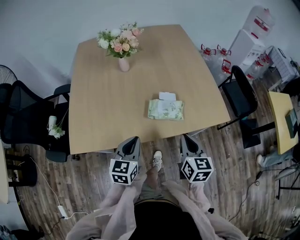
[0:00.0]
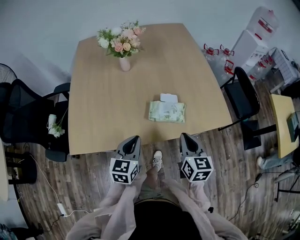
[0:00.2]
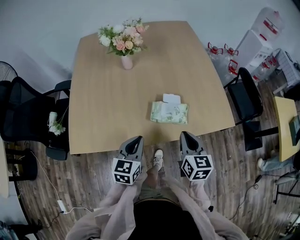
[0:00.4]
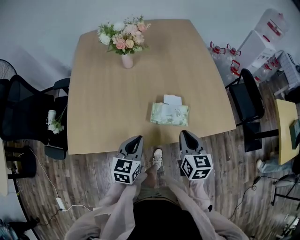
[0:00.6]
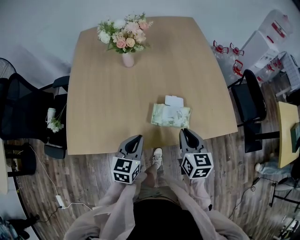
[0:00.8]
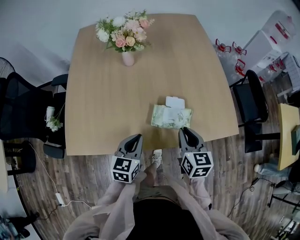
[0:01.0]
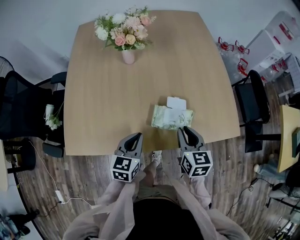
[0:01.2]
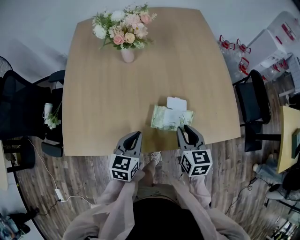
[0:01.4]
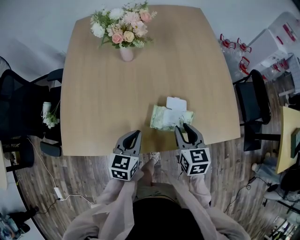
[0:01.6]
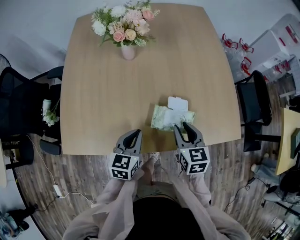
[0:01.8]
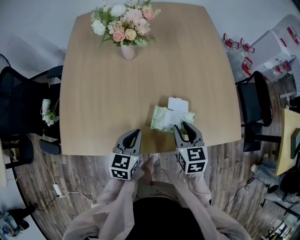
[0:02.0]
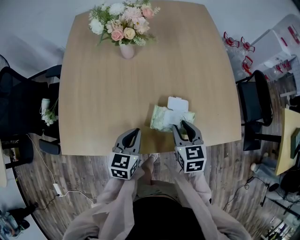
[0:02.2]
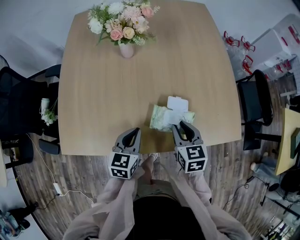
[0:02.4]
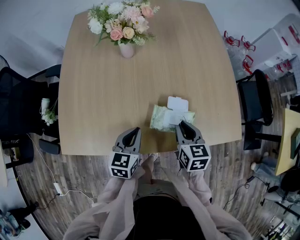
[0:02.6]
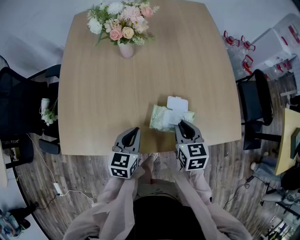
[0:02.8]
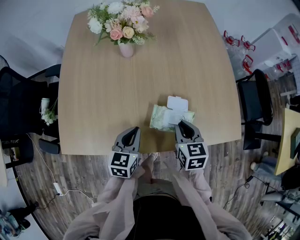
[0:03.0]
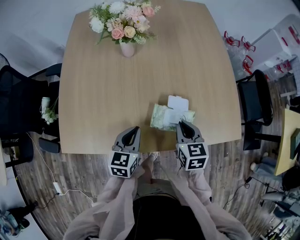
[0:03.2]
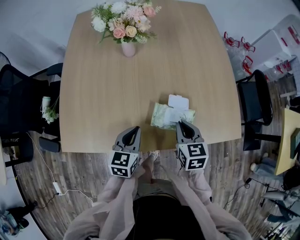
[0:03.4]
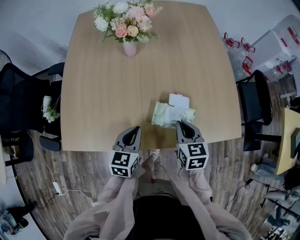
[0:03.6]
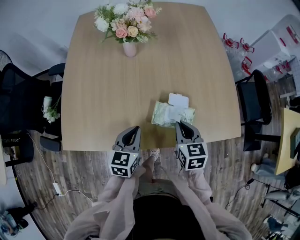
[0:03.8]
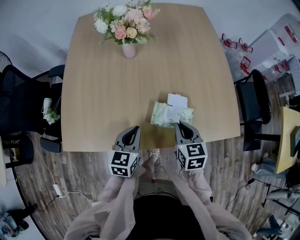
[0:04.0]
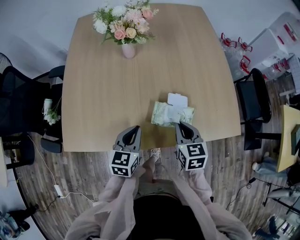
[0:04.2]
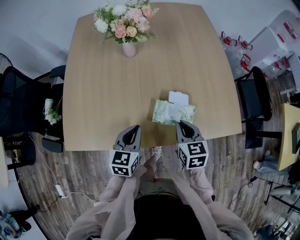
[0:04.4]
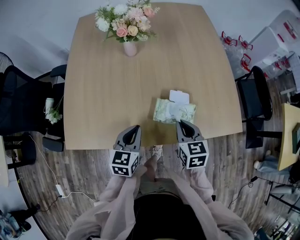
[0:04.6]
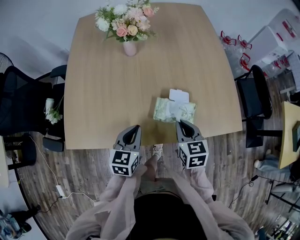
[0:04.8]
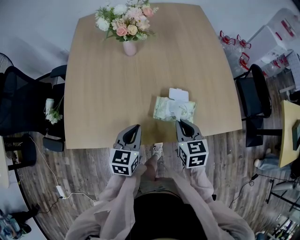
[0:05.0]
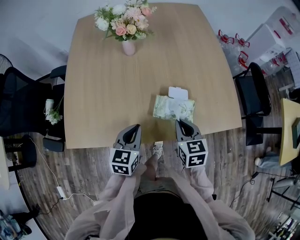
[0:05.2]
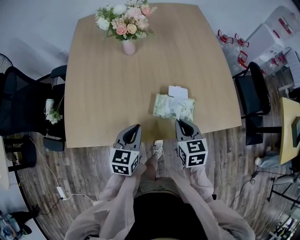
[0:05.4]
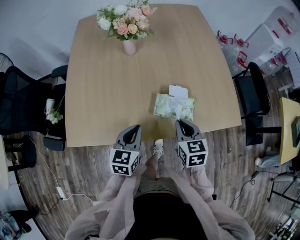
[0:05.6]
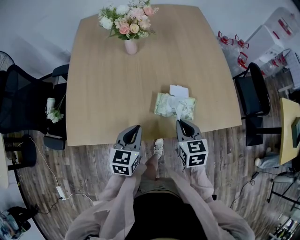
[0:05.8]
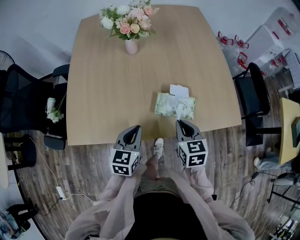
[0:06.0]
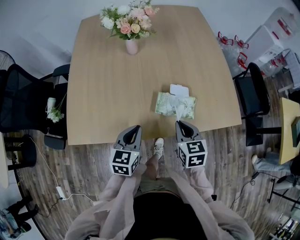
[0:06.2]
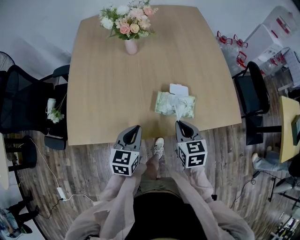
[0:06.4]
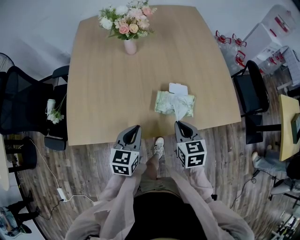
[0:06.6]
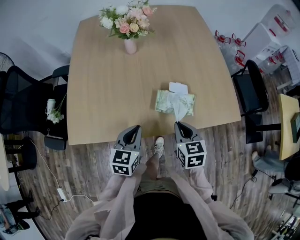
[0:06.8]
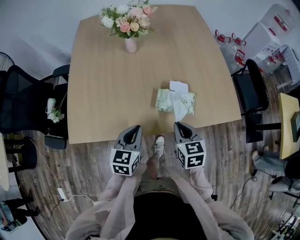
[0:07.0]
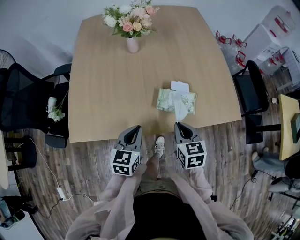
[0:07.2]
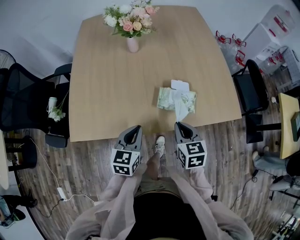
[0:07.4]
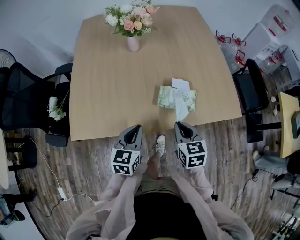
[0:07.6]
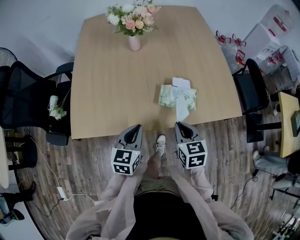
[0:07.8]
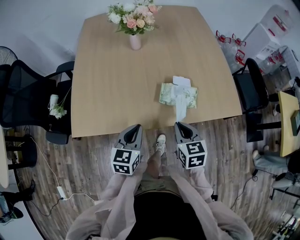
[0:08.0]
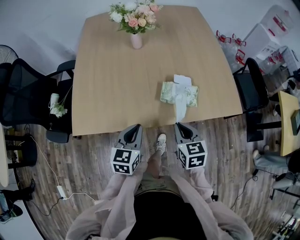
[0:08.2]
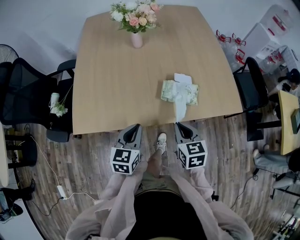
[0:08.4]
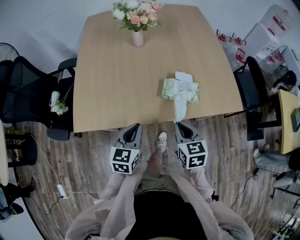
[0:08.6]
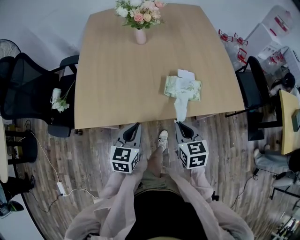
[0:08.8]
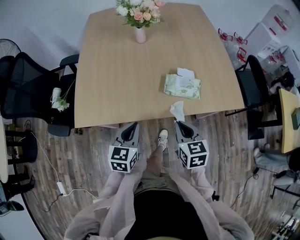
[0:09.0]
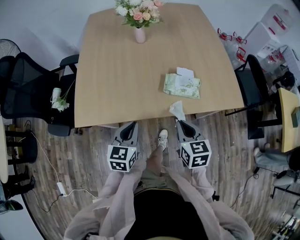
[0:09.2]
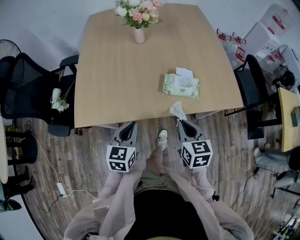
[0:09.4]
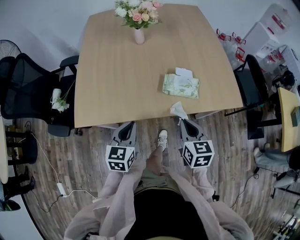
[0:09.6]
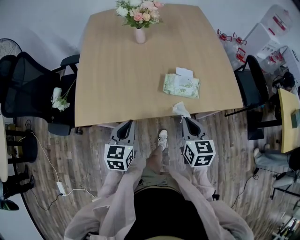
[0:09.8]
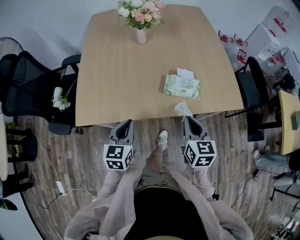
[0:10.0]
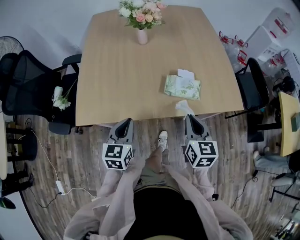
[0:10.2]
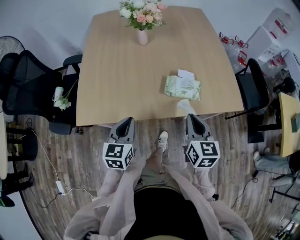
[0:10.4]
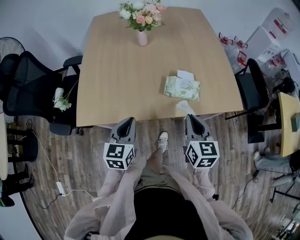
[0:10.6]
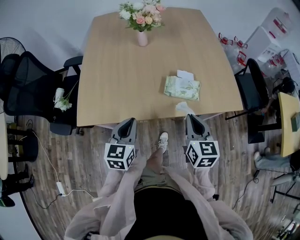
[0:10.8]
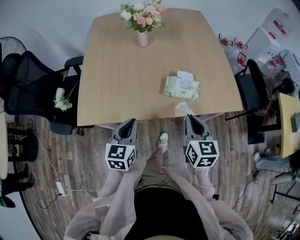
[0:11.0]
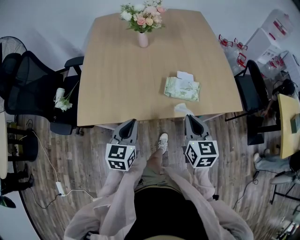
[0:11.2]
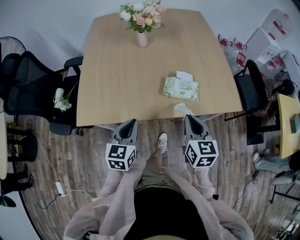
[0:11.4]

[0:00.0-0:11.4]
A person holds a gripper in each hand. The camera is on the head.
0.0 to 1.4 s: The grippers both shift forward and downward by some 15 cm. The right gripper opens.
1.4 to 5.6 s: The grippers stay close to where they were, moving slightly.
5.6 to 7.2 s: The grippers make only small movements.
7.2 to 8.6 s: The grippers both shift backward by roughly 5 cm.
8.6 to 10.0 s: The grippers stay close to where they were, moving slightly.
10.0 to 11.4 s: The grippers move only a little.

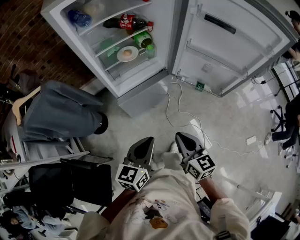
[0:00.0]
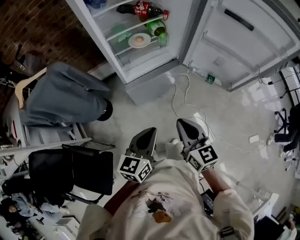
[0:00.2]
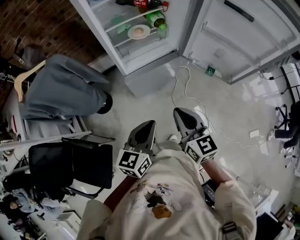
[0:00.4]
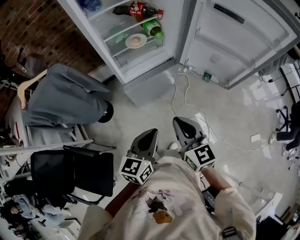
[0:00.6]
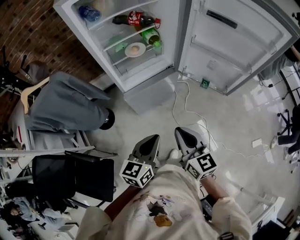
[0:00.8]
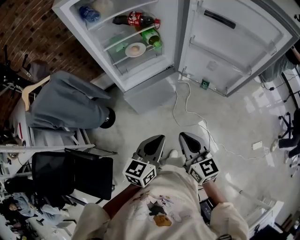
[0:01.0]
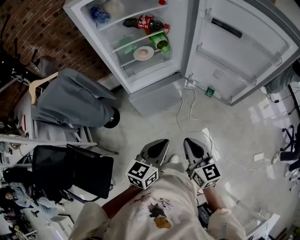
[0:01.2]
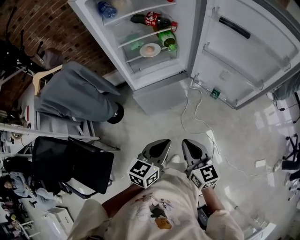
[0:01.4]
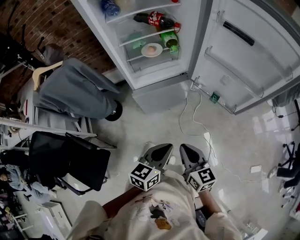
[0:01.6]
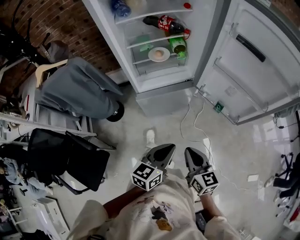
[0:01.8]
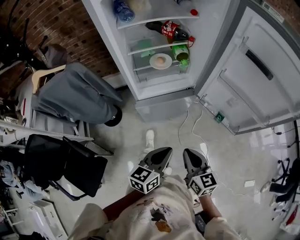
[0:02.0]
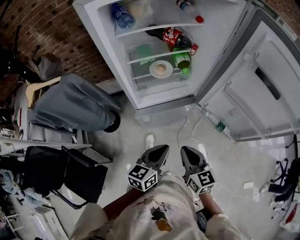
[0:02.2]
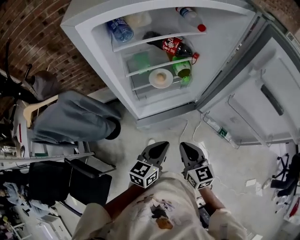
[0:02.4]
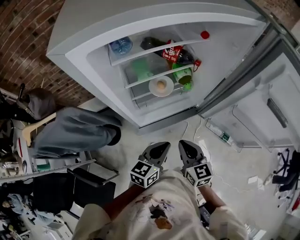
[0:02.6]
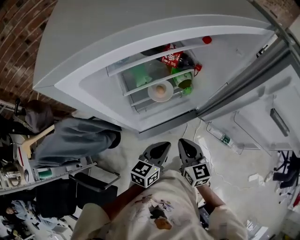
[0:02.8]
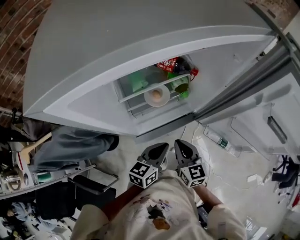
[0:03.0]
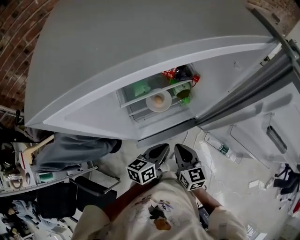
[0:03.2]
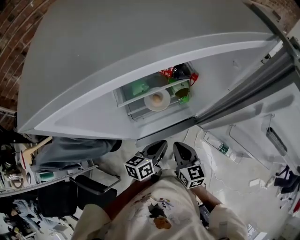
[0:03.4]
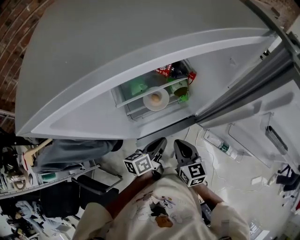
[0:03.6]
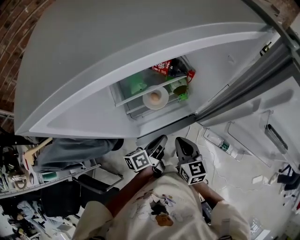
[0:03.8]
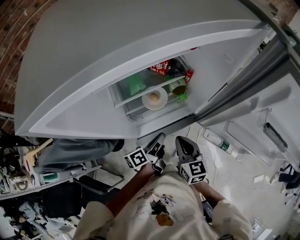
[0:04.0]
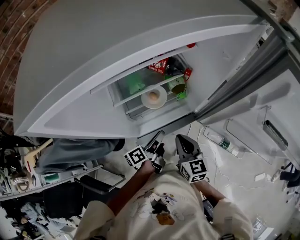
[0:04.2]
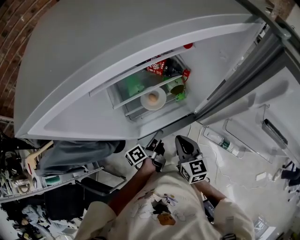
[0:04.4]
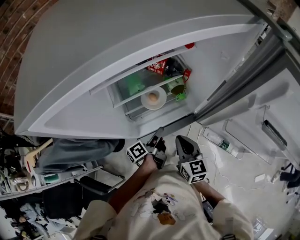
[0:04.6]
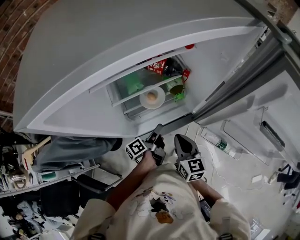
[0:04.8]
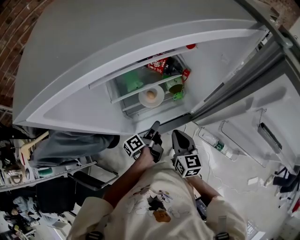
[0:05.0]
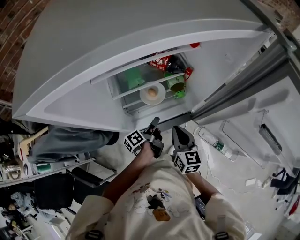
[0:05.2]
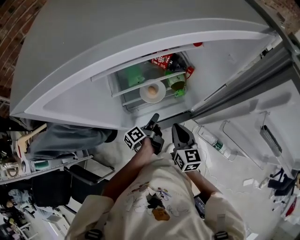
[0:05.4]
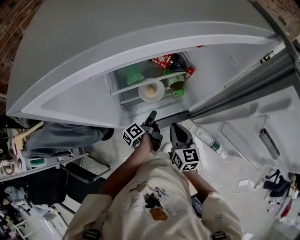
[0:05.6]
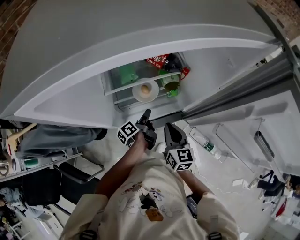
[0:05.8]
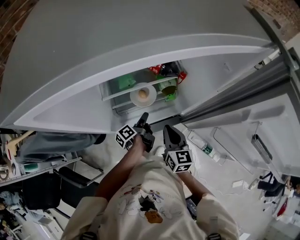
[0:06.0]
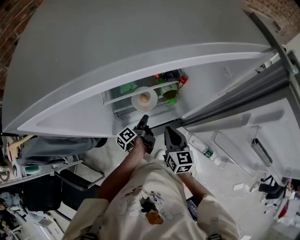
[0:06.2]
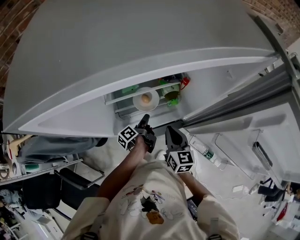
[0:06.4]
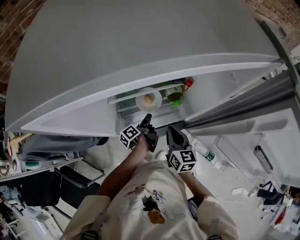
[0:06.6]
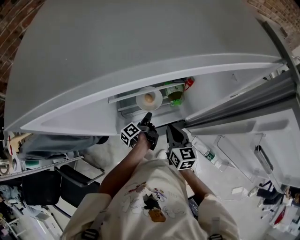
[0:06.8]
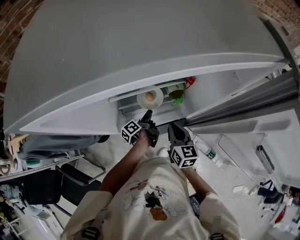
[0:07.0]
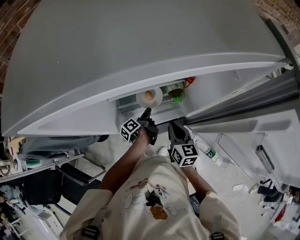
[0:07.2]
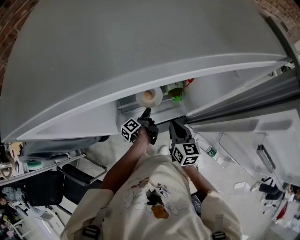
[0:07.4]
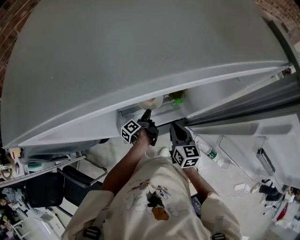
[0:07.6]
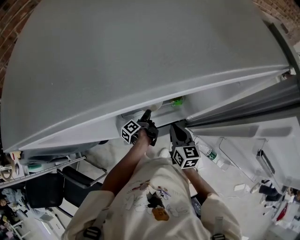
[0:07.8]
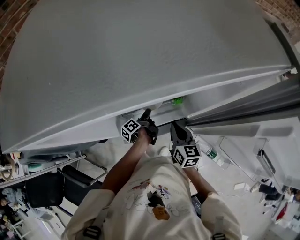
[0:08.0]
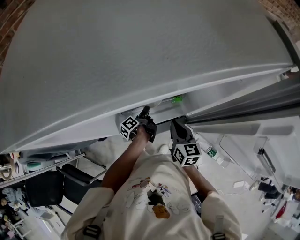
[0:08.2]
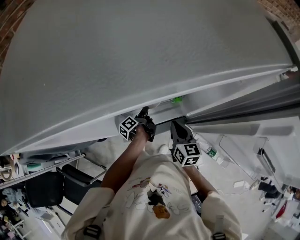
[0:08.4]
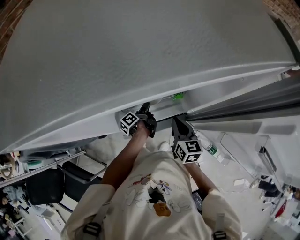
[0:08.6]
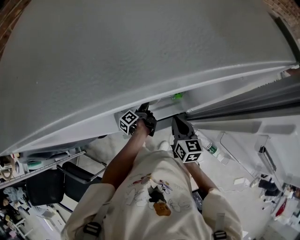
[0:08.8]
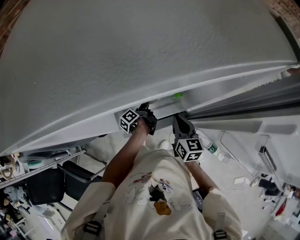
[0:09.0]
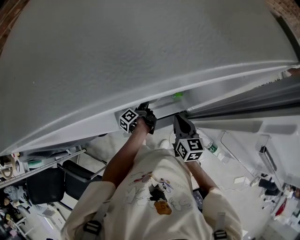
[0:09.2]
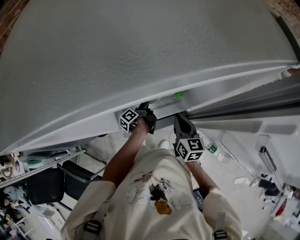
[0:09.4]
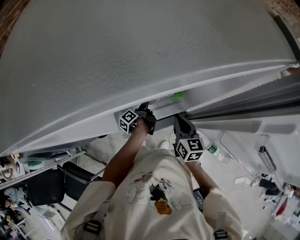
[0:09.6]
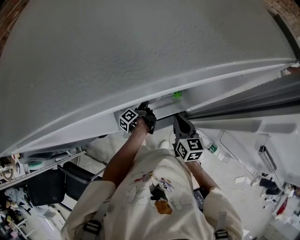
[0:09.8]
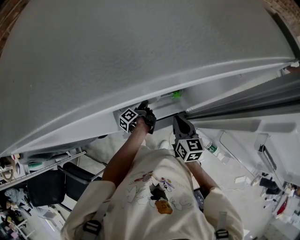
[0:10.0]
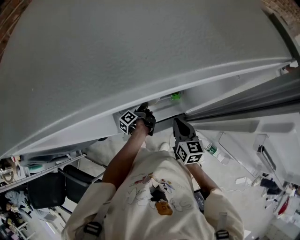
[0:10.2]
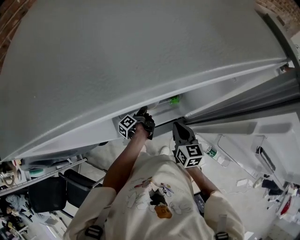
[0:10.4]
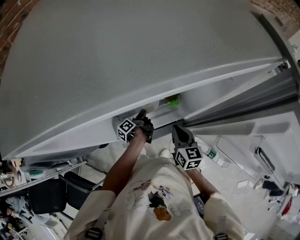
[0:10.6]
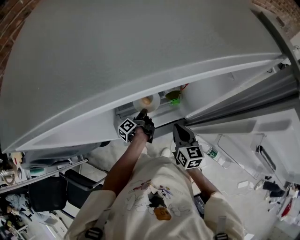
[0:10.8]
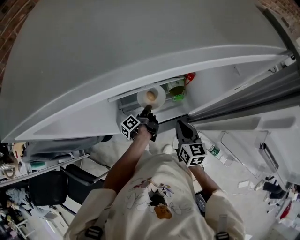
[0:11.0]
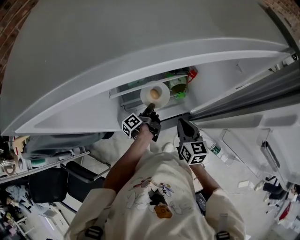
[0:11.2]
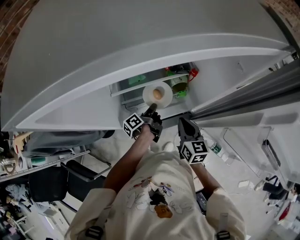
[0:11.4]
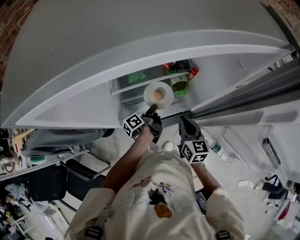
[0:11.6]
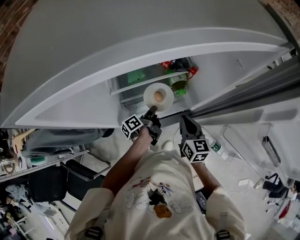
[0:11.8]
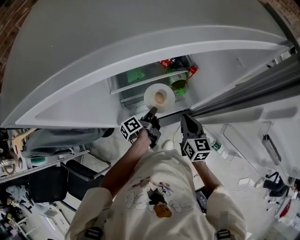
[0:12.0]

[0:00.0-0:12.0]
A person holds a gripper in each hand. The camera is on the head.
0.0 to 1.6 s: The right gripper shifts by some 5 cm.
1.6 to 3.0 s: The right gripper shifts by approximately 35 cm.
4.4 to 6.0 s: The right gripper shifts by roughly 5 cm.

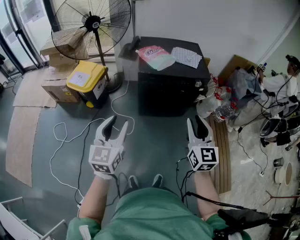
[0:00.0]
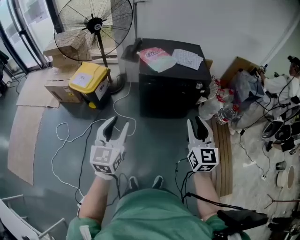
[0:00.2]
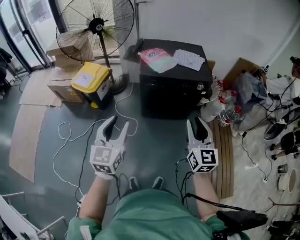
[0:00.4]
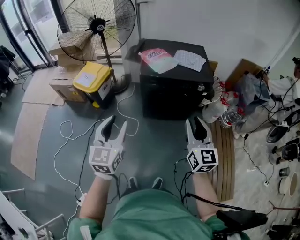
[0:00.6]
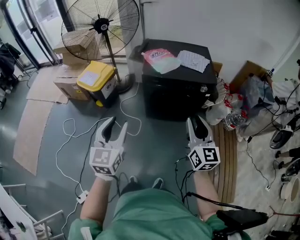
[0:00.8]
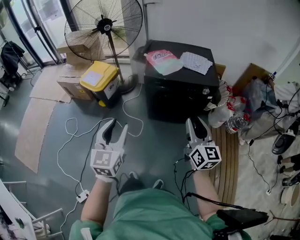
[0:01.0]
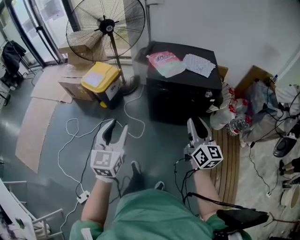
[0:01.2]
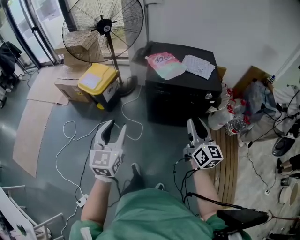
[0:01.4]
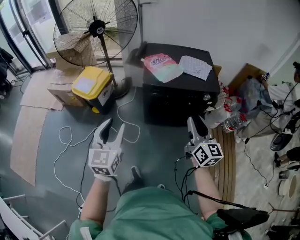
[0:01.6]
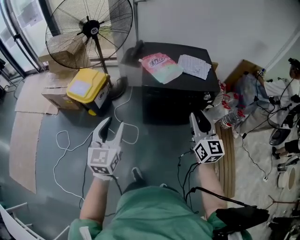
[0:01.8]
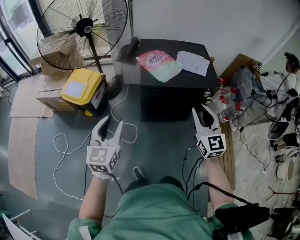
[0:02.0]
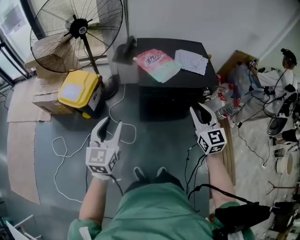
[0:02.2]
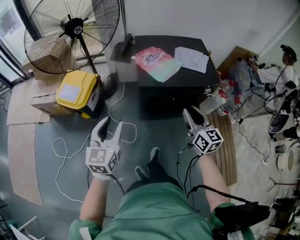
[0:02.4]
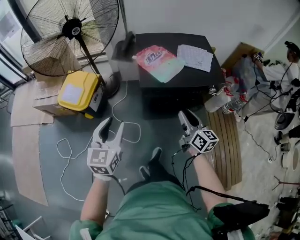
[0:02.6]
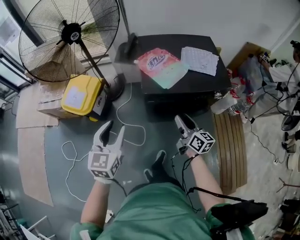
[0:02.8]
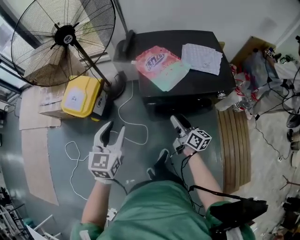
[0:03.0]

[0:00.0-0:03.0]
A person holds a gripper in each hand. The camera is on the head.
0.0 to 1.6 s: Both grippers travel together forward, some 10 cm. The right gripper changes its angle by roughly 20 degrees.
1.6 to 3.0 s: The left gripper shifts about 25 cm forward. The right gripper heads forward and downward, covering about 30 cm, and rotates roughly 30 degrees.
